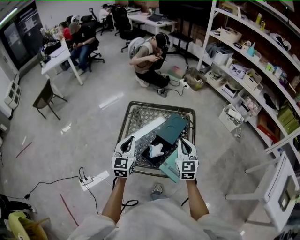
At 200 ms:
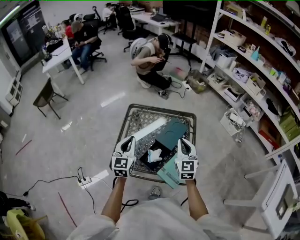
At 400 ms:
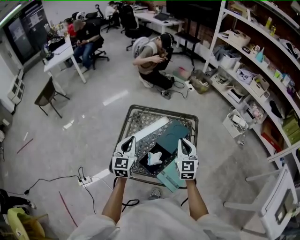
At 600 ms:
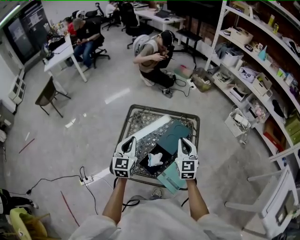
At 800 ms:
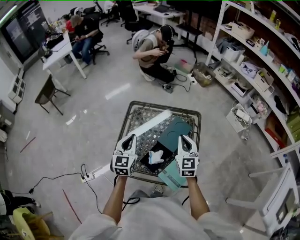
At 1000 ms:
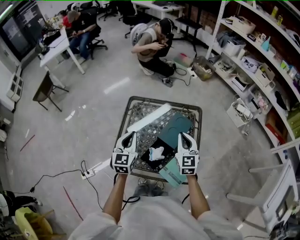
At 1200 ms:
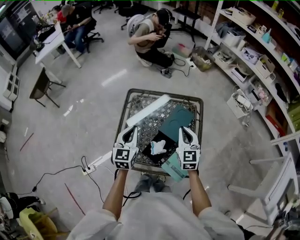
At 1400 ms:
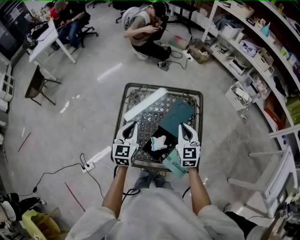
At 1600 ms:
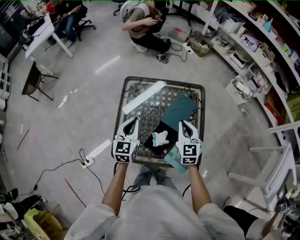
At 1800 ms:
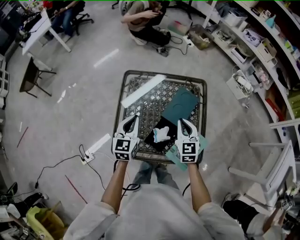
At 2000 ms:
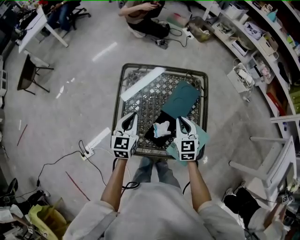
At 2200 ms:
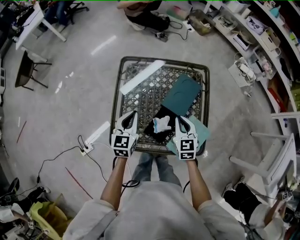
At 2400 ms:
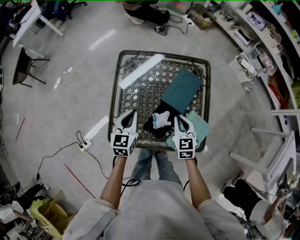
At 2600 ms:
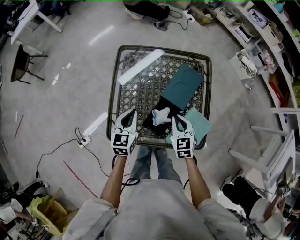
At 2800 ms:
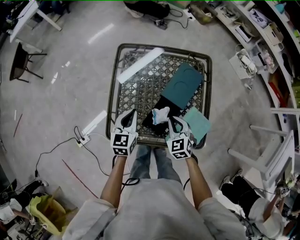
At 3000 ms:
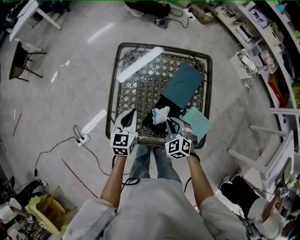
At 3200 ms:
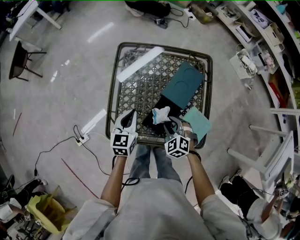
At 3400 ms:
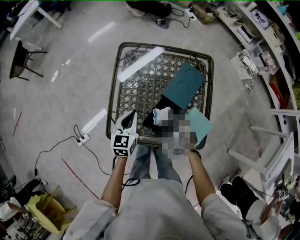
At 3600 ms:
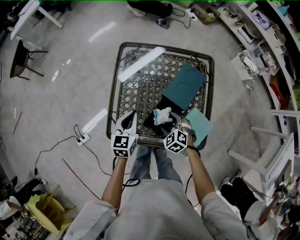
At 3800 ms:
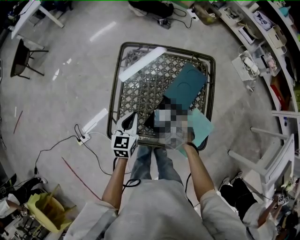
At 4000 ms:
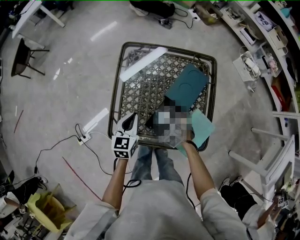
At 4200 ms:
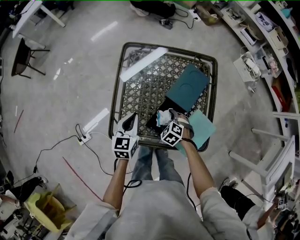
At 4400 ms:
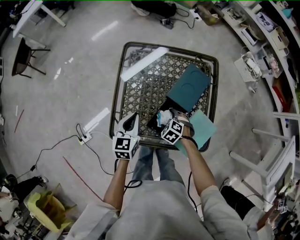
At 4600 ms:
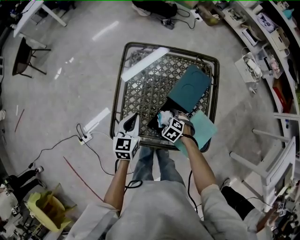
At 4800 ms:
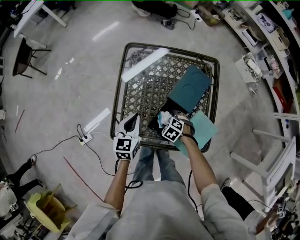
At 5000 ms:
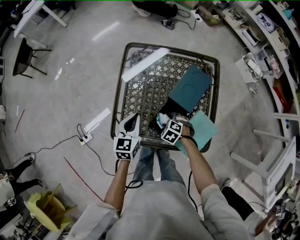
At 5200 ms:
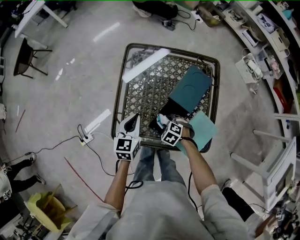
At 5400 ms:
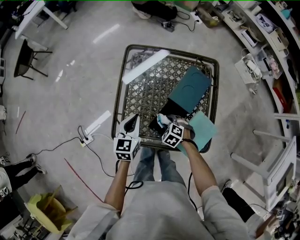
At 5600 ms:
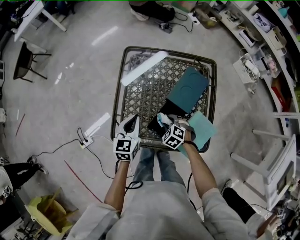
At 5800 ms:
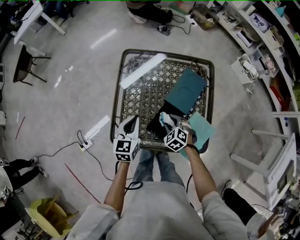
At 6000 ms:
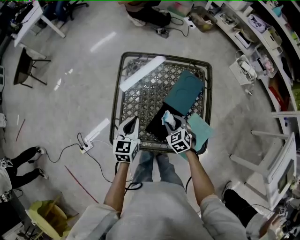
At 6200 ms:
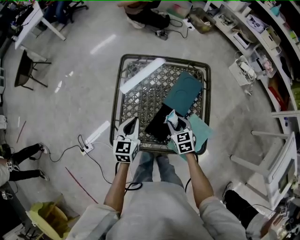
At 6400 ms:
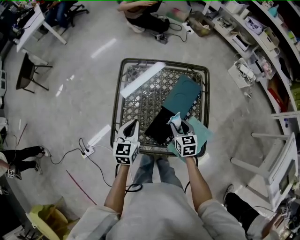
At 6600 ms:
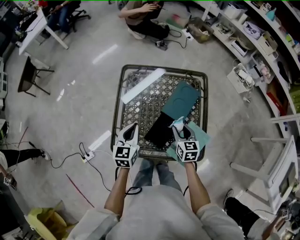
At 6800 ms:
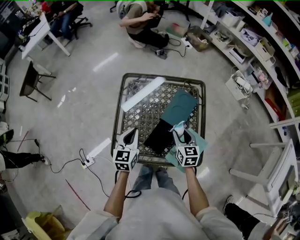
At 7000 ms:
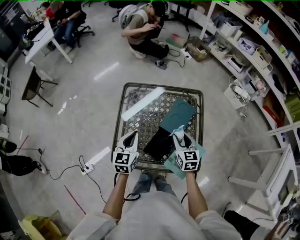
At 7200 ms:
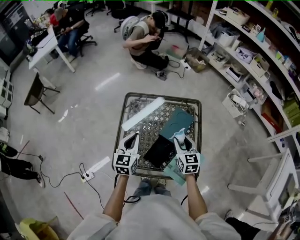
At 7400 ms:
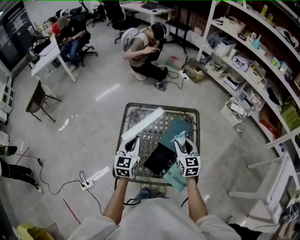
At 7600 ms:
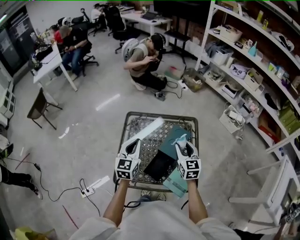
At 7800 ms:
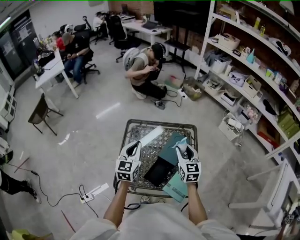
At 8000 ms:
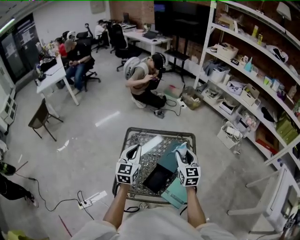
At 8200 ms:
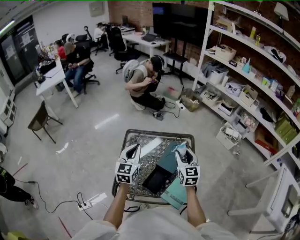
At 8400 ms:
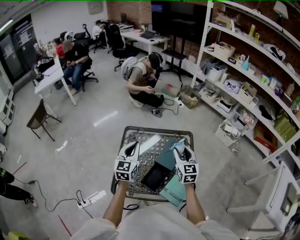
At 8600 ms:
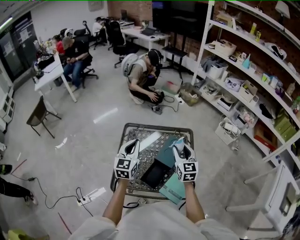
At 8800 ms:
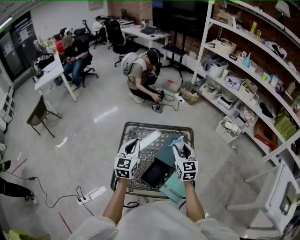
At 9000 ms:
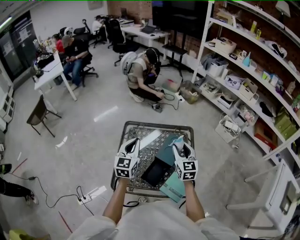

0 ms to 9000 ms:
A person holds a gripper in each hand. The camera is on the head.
0 ms to 1600 ms: Both grippers move forward and downward, roughly 15 cm.
1600 ms to 3000 ms: The right gripper travels downward and backward by about 20 cm, and turns by roughly 40 degrees. The left gripper heads downward, covering some 10 cm.
3000 ms to 4400 ms: The right gripper is displaced downward by roughly 10 cm, turns by approximately 30 degrees, and opens up.
4400 ms to 6000 ms: The right gripper heads upward, covering some 10 cm, rotates roughly 30 degrees, and closes up.
6000 ms to 7600 ms: Both grippers move upward, about 20 cm. The right gripper angles its fingers upward, by roughly 30 degrees.
7600 ms to 9000 ms: The grippers make only small movements.

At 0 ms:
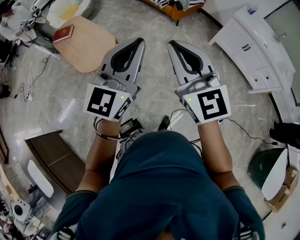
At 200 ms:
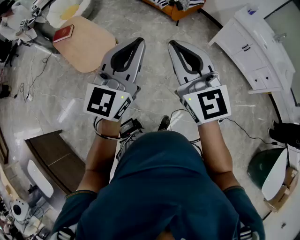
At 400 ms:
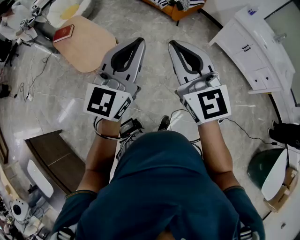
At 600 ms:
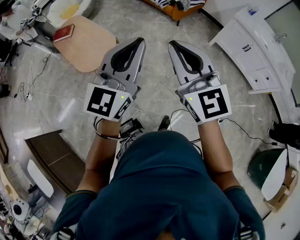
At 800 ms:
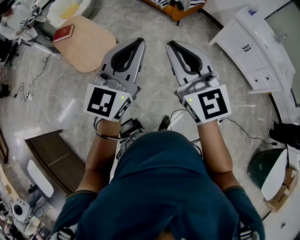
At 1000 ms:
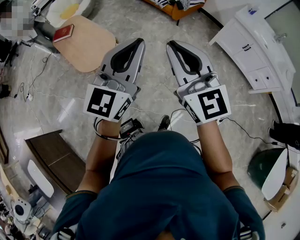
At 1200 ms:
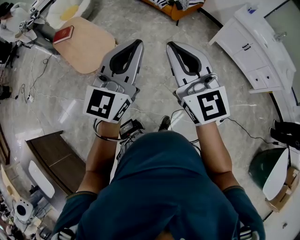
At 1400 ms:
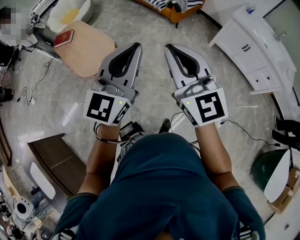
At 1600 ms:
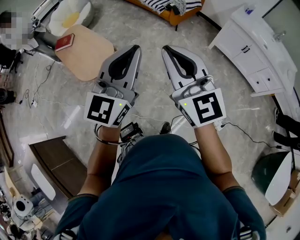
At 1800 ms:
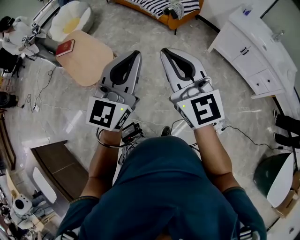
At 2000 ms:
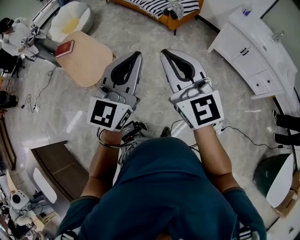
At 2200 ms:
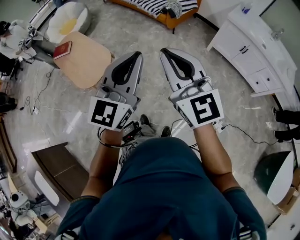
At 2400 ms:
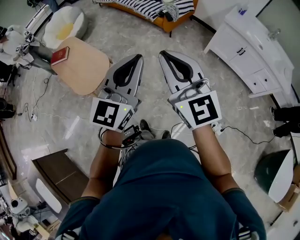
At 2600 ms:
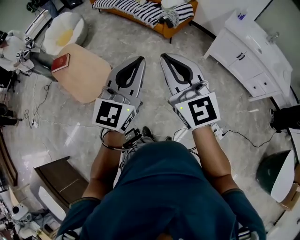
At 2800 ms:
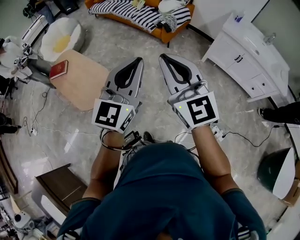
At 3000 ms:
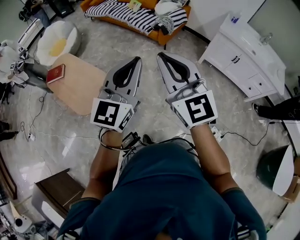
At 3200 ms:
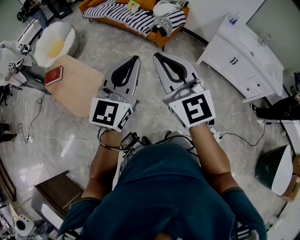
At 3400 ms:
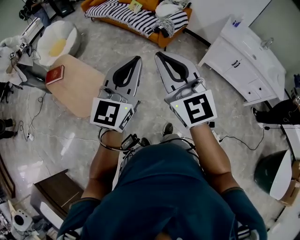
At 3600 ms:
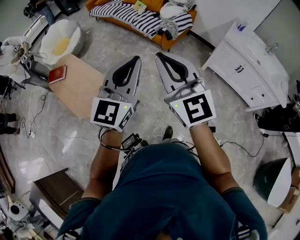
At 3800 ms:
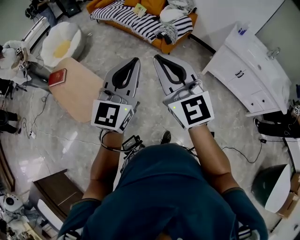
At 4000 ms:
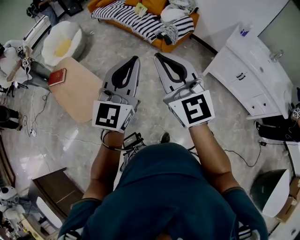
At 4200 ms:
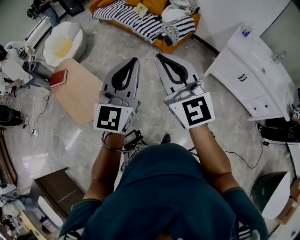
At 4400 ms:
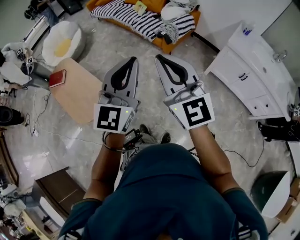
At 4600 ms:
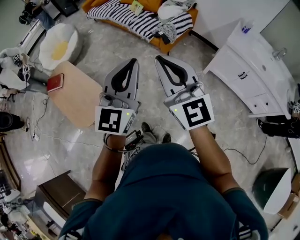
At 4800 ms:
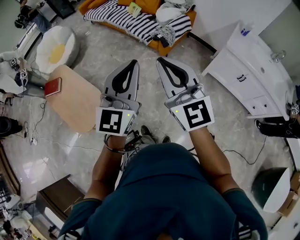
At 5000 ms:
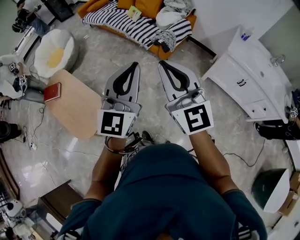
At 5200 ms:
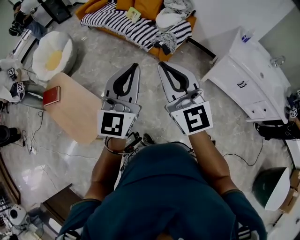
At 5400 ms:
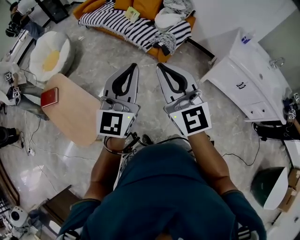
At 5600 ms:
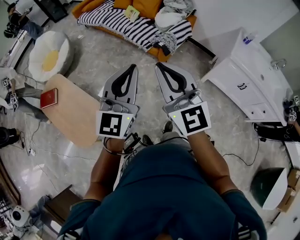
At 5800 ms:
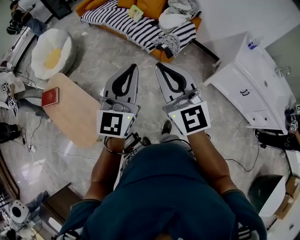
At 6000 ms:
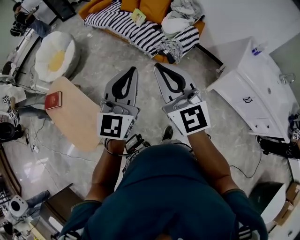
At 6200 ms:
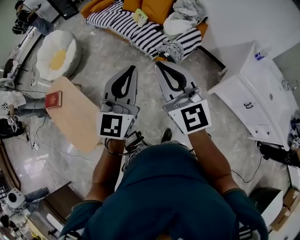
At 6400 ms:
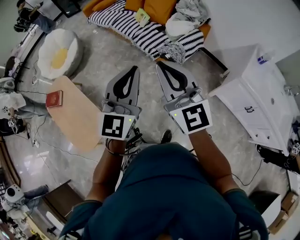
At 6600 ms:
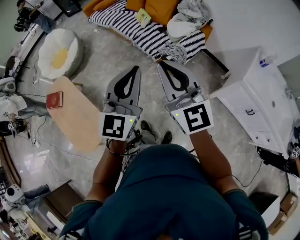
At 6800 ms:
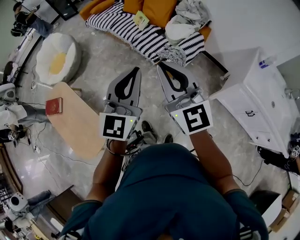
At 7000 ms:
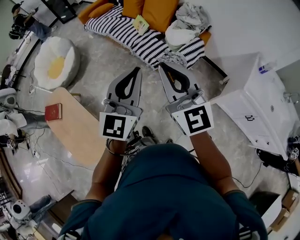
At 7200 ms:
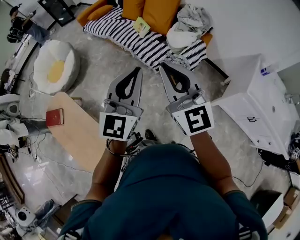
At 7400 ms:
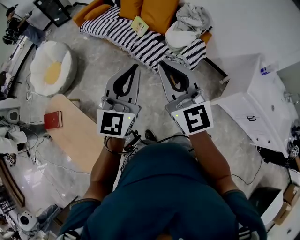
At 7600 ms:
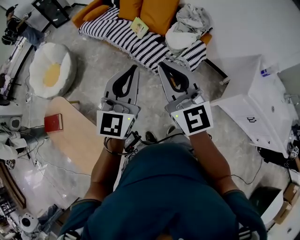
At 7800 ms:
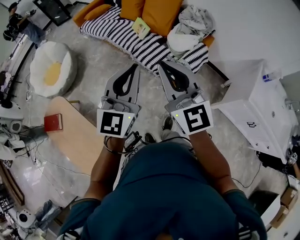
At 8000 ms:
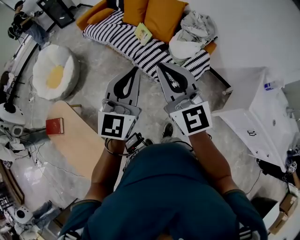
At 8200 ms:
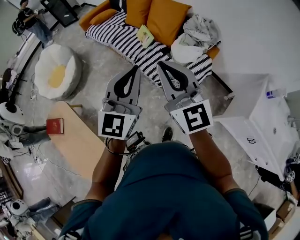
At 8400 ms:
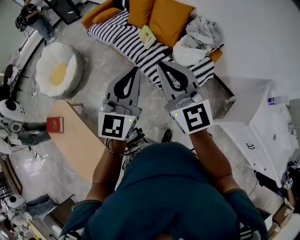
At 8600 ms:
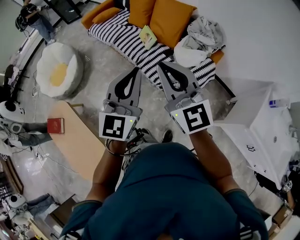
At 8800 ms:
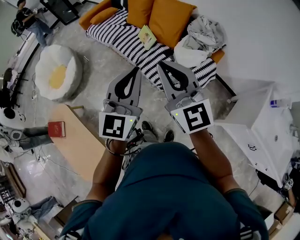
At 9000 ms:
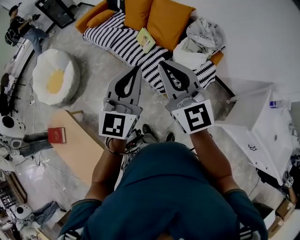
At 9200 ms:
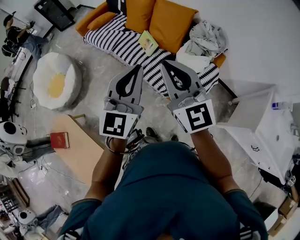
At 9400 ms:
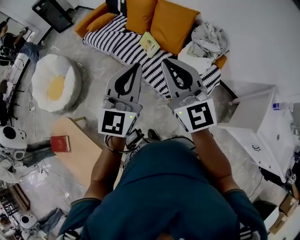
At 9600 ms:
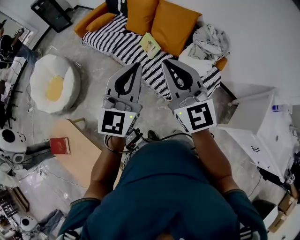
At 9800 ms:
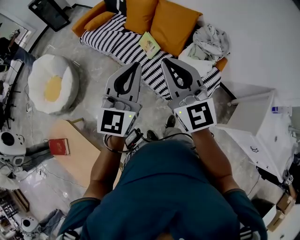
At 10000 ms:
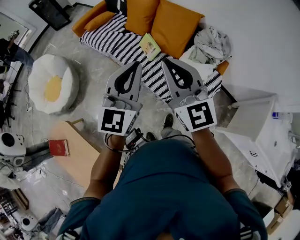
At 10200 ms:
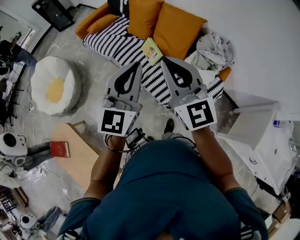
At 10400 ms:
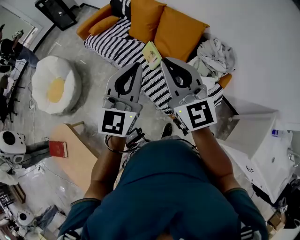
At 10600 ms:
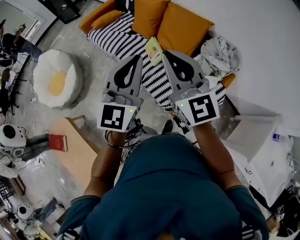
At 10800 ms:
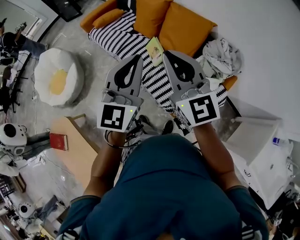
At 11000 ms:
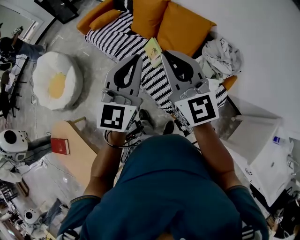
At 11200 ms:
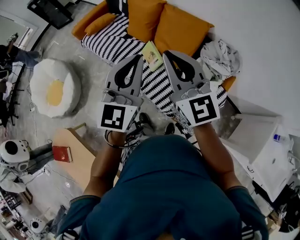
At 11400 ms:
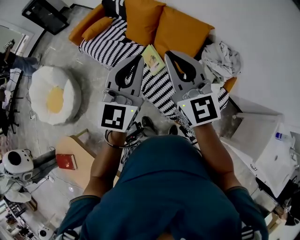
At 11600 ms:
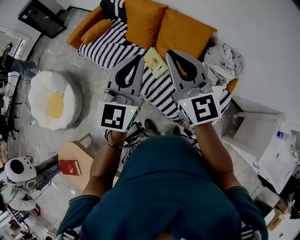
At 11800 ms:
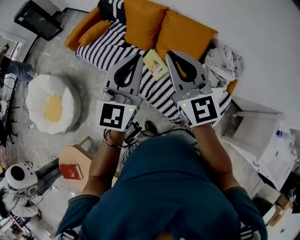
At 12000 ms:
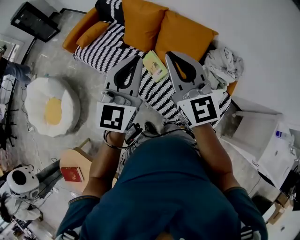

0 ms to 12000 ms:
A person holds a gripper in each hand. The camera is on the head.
0 ms to 1600 ms: The left gripper is displaced to the right by roughly 5 cm. Meanwhile the right gripper shifts by roughly 5 cm.
1600 ms to 3000 ms: The right gripper moves forward and to the left, roughly 15 cm. Meanwhile the left gripper heads forward, covering approximately 15 cm.
3000 ms to 4400 ms: Both grippers move forward and to the right, some 20 cm.
4400 ms to 6000 ms: The grippers both shift forward by roughly 25 cm.
6000 ms to 7600 ms: Both grippers travel together forward, approximately 25 cm.
7600 ms to 9000 ms: The two grippers go approximately 25 cm forward.
9000 ms to 10400 ms: The two grippers go some 20 cm forward.
10400 ms to 12000 ms: Both grippers move forward, approximately 25 cm.

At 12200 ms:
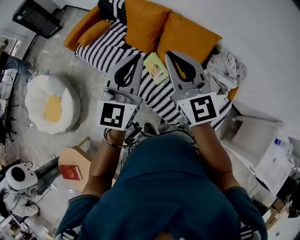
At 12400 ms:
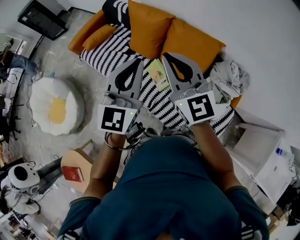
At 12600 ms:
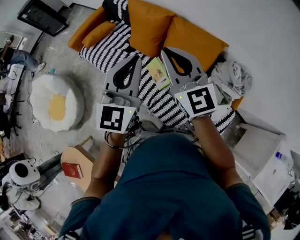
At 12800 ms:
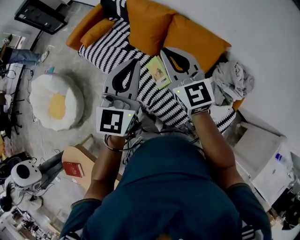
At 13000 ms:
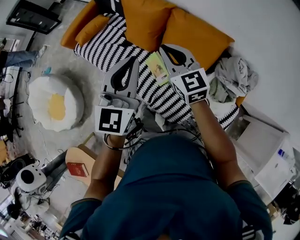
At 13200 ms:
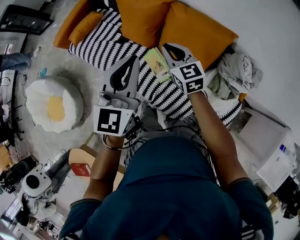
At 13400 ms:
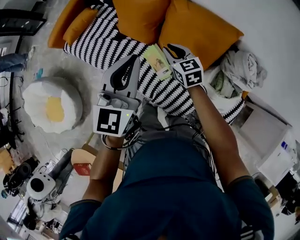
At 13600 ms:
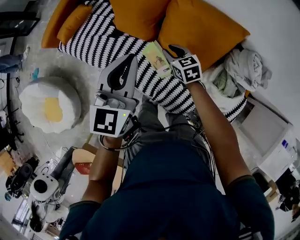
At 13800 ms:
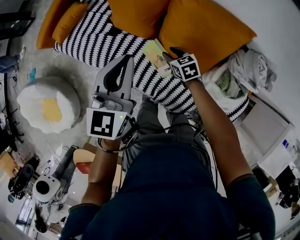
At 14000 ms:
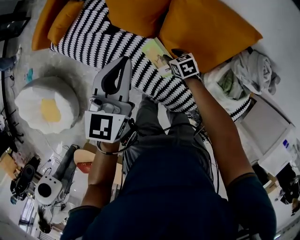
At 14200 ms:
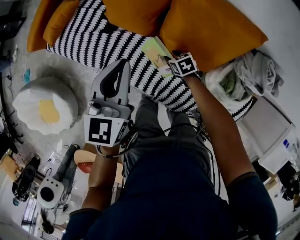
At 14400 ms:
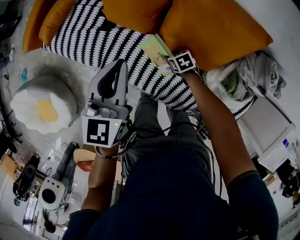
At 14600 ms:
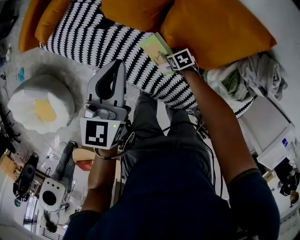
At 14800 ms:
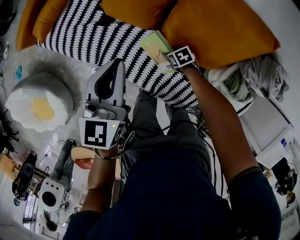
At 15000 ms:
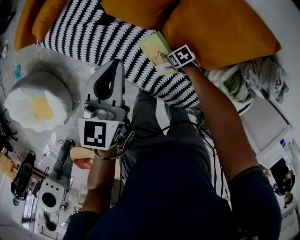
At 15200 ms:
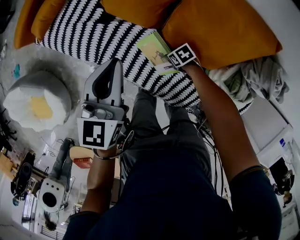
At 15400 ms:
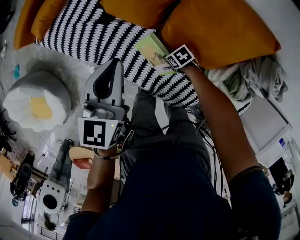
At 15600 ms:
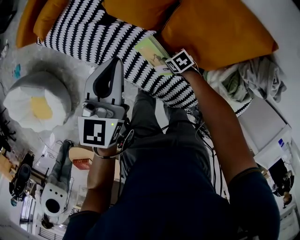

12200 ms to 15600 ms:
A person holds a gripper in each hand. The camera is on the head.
12200 ms to 13800 ms: The right gripper shifts roughly 60 cm downward and forward, tilts its fingers roughly 50 degrees downward, and opens its fingers; the left gripper heads forward and downward, covering approximately 30 cm.
13800 ms to 15600 ms: The grippers both shift downward by some 15 cm. The right gripper rotates approximately 30 degrees.
